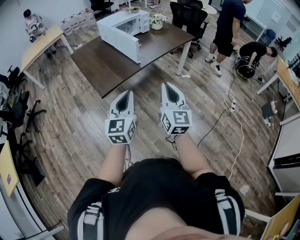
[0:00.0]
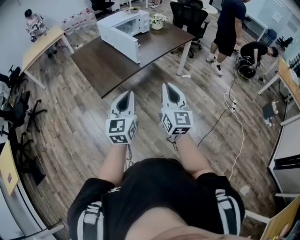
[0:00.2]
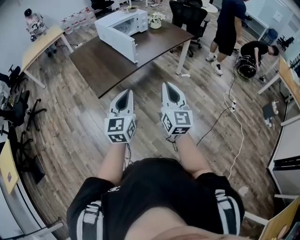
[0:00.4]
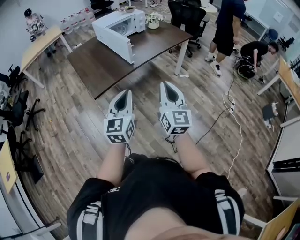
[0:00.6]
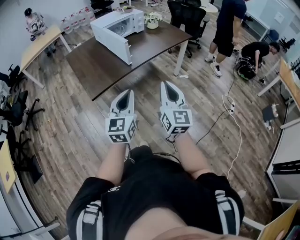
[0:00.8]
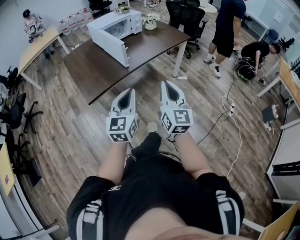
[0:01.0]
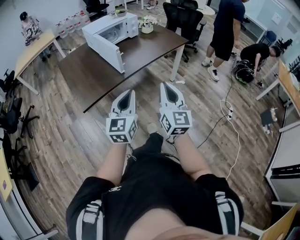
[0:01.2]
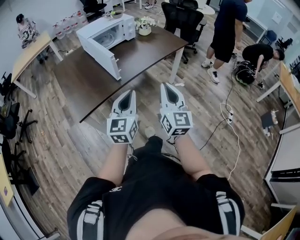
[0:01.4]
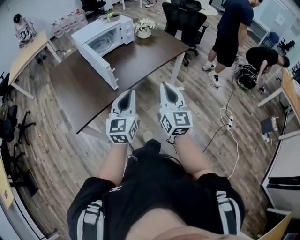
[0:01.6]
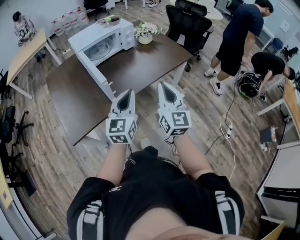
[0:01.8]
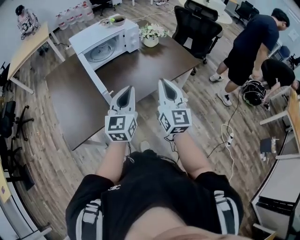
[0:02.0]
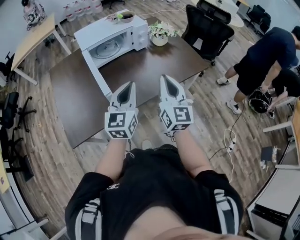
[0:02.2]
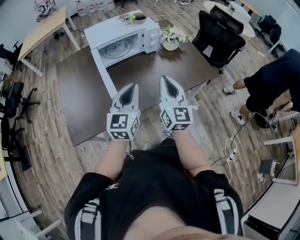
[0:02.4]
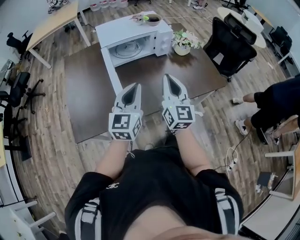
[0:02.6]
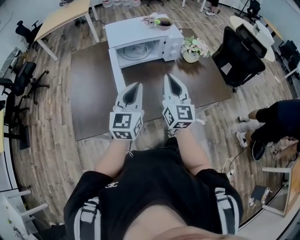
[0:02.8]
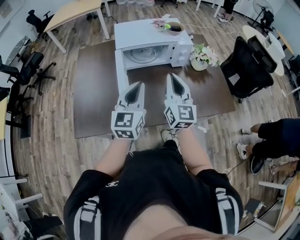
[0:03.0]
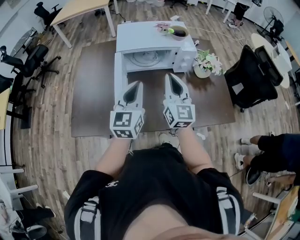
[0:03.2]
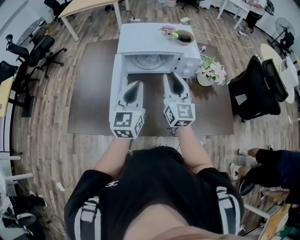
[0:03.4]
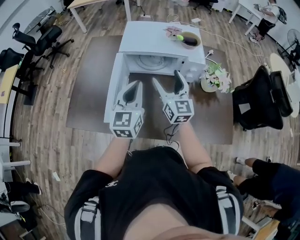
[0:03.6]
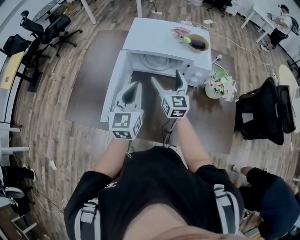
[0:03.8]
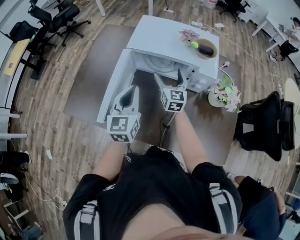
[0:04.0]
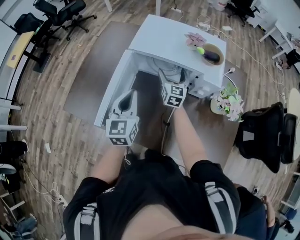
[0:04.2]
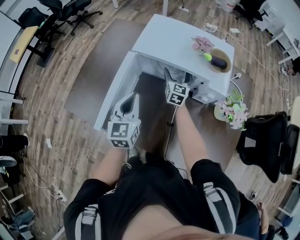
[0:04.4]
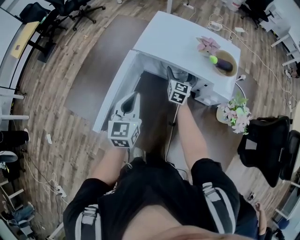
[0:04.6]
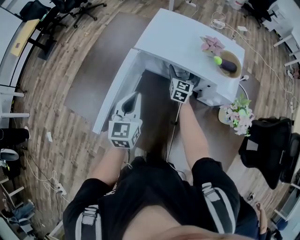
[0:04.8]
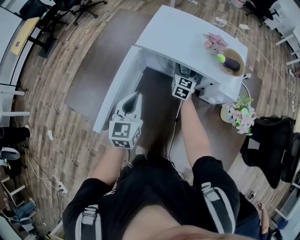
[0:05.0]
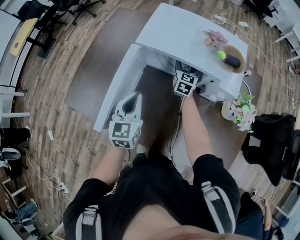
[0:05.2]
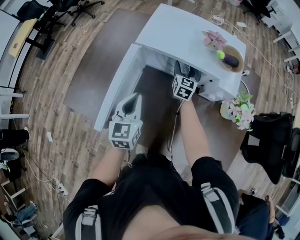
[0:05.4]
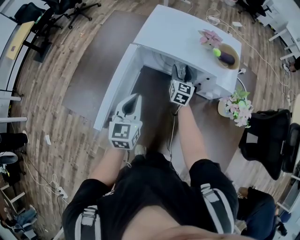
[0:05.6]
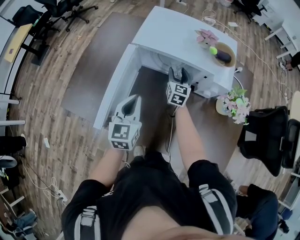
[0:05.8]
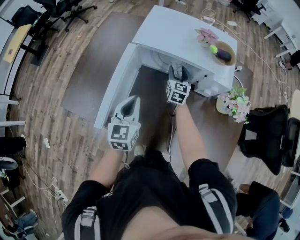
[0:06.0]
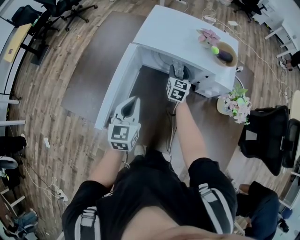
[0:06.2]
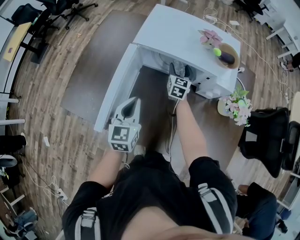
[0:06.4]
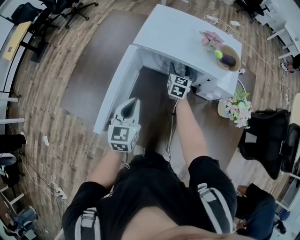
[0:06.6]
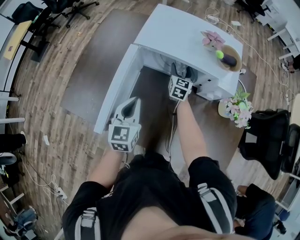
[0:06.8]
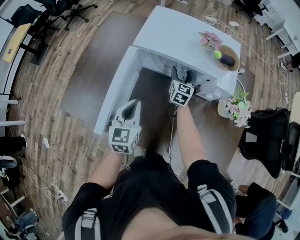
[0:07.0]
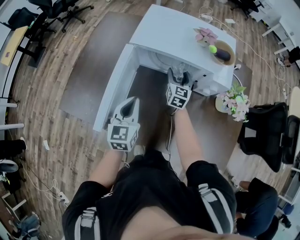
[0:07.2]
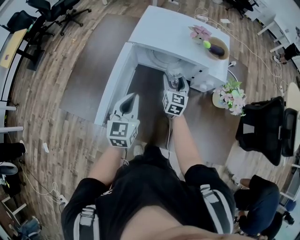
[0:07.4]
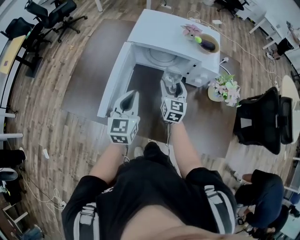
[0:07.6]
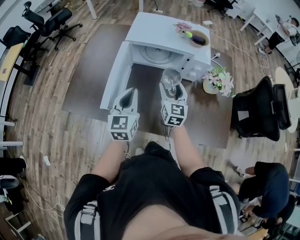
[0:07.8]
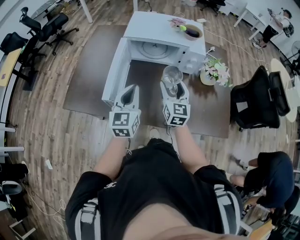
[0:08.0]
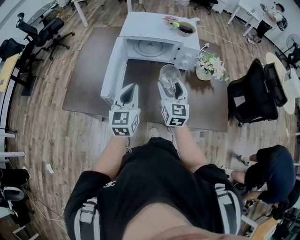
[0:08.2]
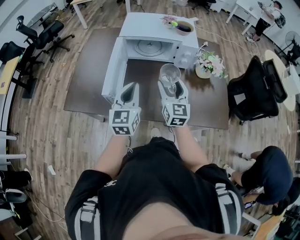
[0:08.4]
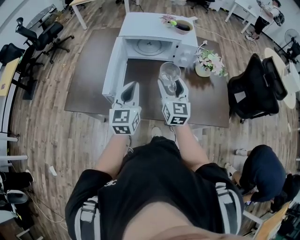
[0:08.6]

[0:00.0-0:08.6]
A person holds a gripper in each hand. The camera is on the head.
0:00.0 to 0:01.4: Both grippers move forward and to the right, some 25 cm.
0:01.4 to 0:02.8: The pair of grippers is taken forward, approximately 50 cm. The left gripper swivels some 20 degrees. Meanwhile the right gripper changes its angle by roughly 20 degrees.
0:02.8 to 0:04.4: The left gripper moves about 20 cm, and changes its angle by roughly 40 degrees, while the right gripper shifts by some 50 cm, swivels approximately 30 degrees, and opens its fingers.
0:04.4 to 0:05.8: The right gripper closes its fingers.
0:05.8 to 0:07.2: The grippers move only a little.
0:07.2 to 0:08.6: The right gripper moves backward and upward, about 35 cm. The left gripper is displaced backward and upward by about 20 cm.

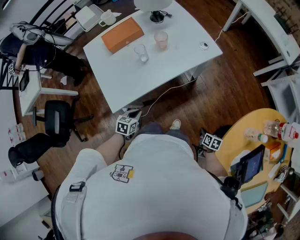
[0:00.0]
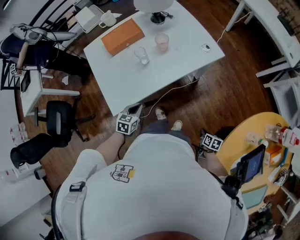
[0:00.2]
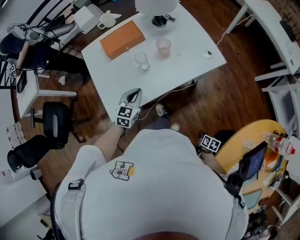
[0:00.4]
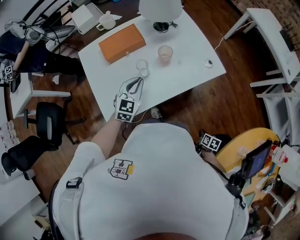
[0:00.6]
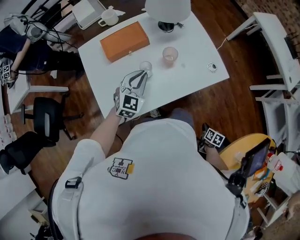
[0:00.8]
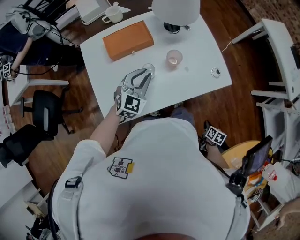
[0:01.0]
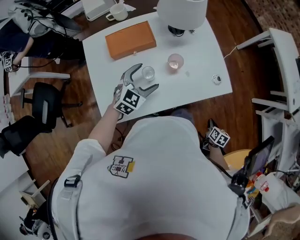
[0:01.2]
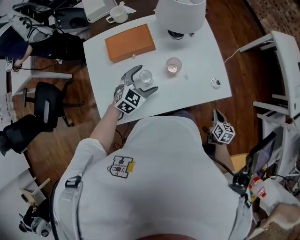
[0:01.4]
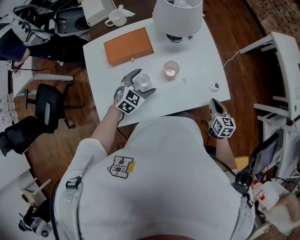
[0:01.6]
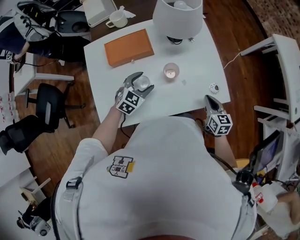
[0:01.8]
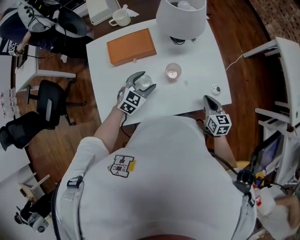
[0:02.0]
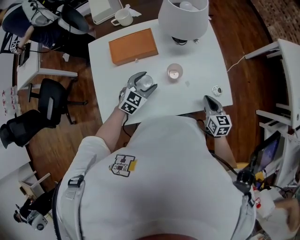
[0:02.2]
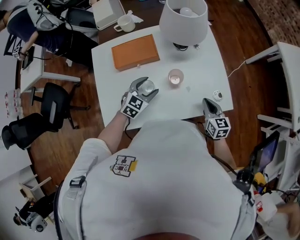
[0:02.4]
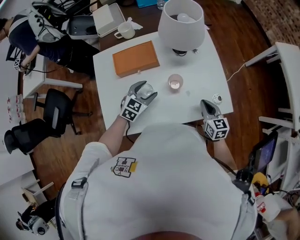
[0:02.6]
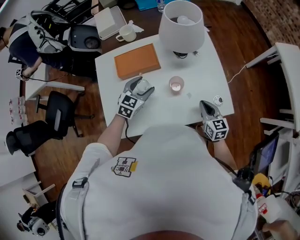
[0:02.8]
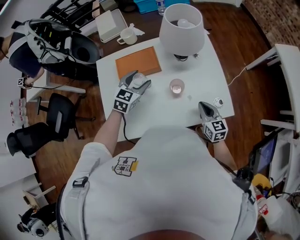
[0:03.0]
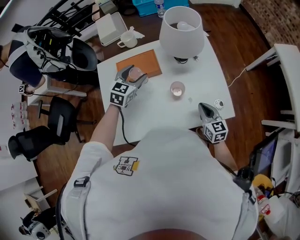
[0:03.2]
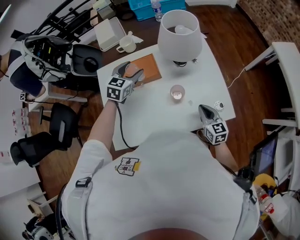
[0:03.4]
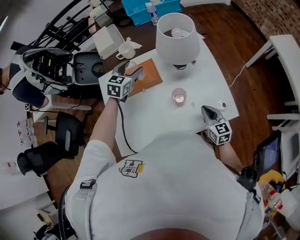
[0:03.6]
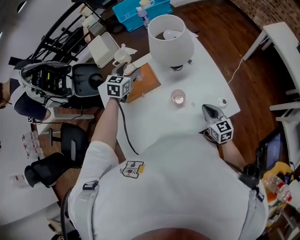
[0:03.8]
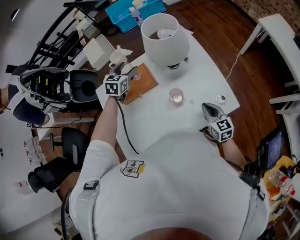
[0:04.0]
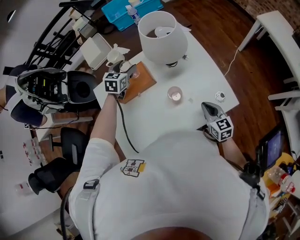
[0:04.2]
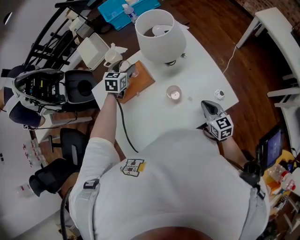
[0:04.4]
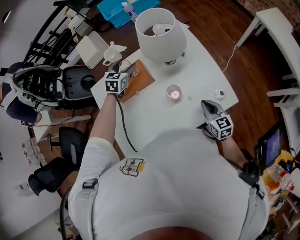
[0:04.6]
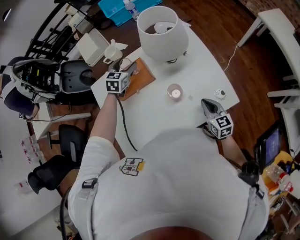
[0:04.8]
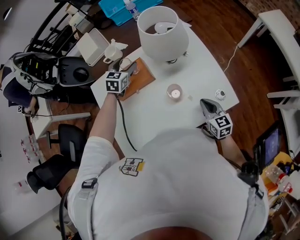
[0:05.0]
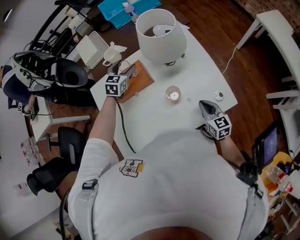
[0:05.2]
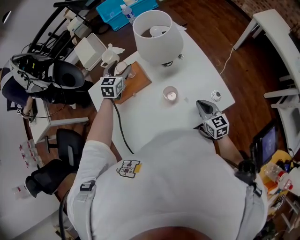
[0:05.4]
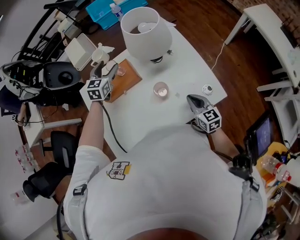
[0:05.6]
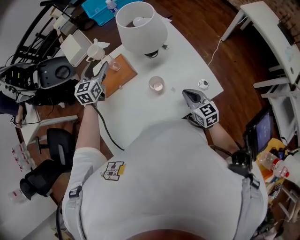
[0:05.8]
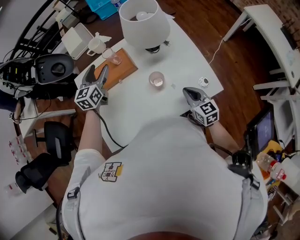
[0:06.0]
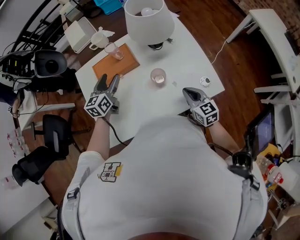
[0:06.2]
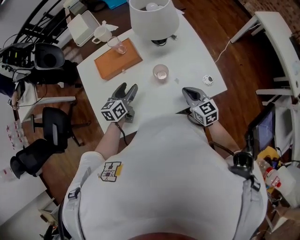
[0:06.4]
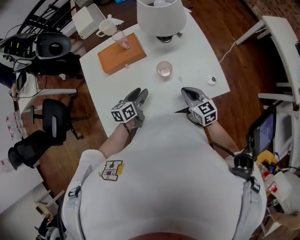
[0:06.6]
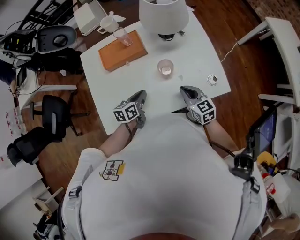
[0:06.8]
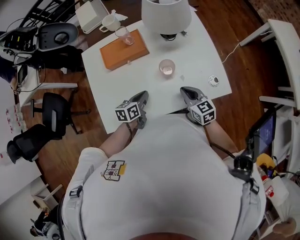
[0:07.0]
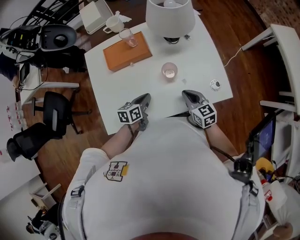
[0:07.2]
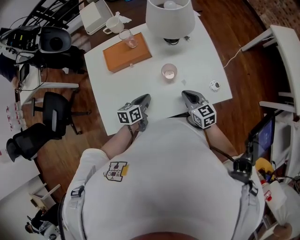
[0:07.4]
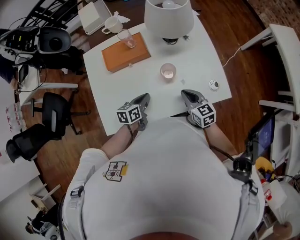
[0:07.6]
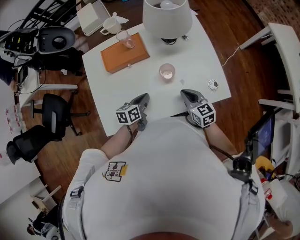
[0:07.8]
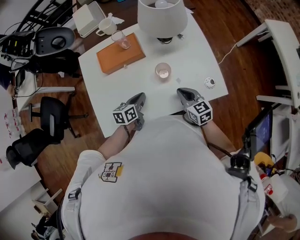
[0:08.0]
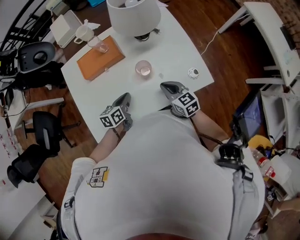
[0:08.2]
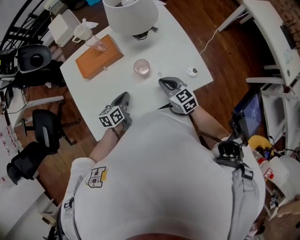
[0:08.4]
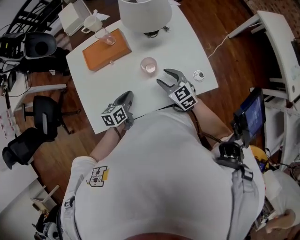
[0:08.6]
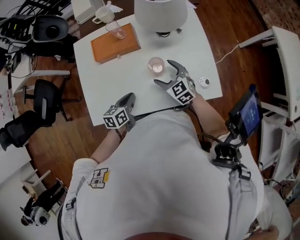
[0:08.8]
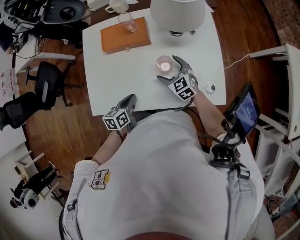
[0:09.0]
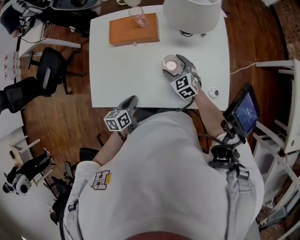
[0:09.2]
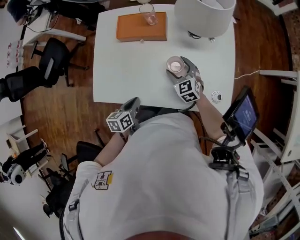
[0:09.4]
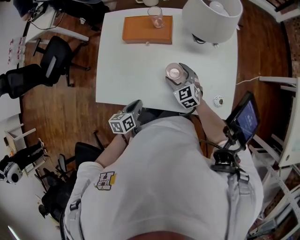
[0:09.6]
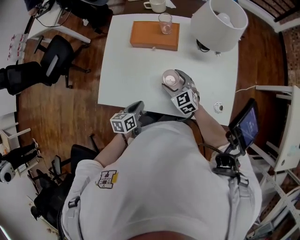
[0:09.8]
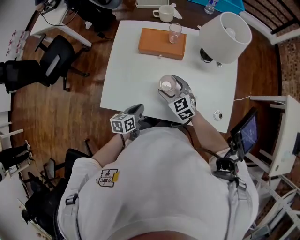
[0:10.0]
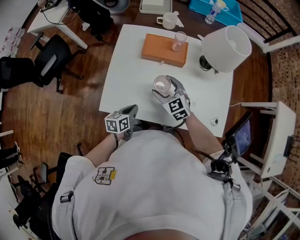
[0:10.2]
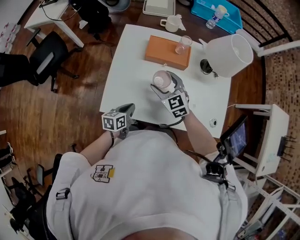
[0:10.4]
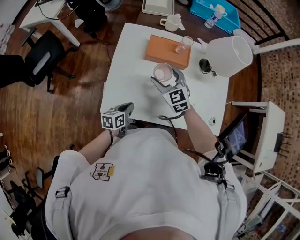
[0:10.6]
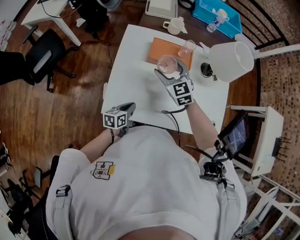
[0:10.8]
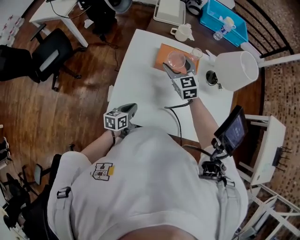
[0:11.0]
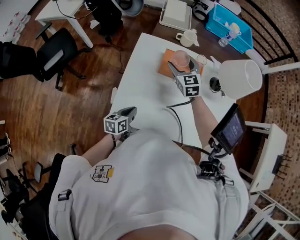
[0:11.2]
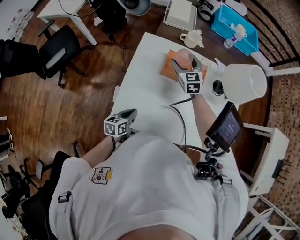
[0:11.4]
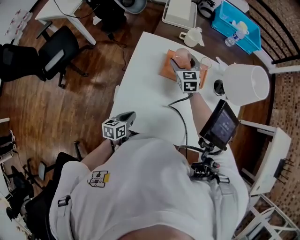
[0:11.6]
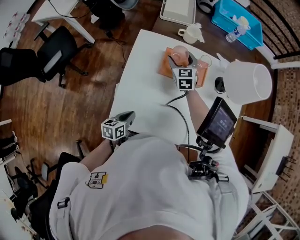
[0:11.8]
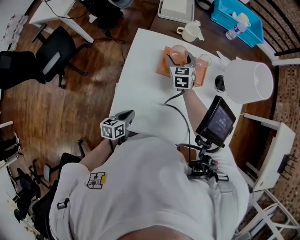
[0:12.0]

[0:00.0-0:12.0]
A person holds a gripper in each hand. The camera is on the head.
0:00.0 to 0:01.6: Both grippers move forward, roughly 40 cm. The right gripper rotates approximately 40 degrees; the left gripper swivels roughly 30 degrees, and opens its fingers.
0:01.6 to 0:03.0: The left gripper moves forward, upward and to the left, some 10 cm. The right gripper shifts about 10 cm to the left.
0:03.0 to 0:04.4: The left gripper is displaced forward by roughly 15 cm.
0:04.4 to 0:06.0: The left gripper goes some 10 cm backward and upward, and rotates approximately 30 degrees.
0:06.0 to 0:07.6: The right gripper moves to the left, approximately 5 cm; the left gripper travels backward, downward and to the right by some 30 cm, changes its angle by about 40 degrees, and closes up.
0:07.6 to 0:09.0: The right gripper heads forward and to the left, covering approximately 10 cm, swivels about 30 degrees, and opens its fingers. The left gripper shifts some 5 cm backward.
0:09.0 to 0:10.4: The right gripper goes roughly 25 cm to the left and upward. Meanwhile the left gripper is displaced to the left by approximately 15 cm.
0:10.4 to 0:12.0: The right gripper moves forward, roughly 25 cm, and swivels about 20 degrees; the left gripper travels to the left by roughly 5 cm.

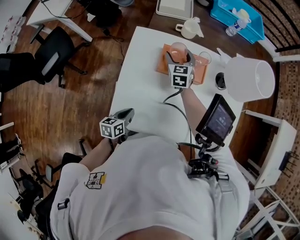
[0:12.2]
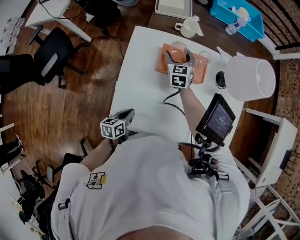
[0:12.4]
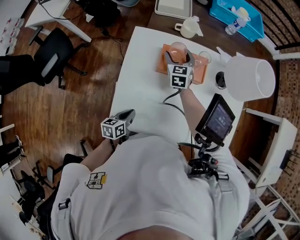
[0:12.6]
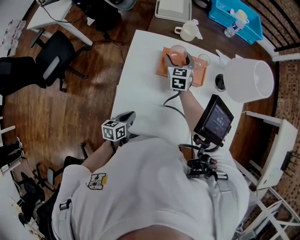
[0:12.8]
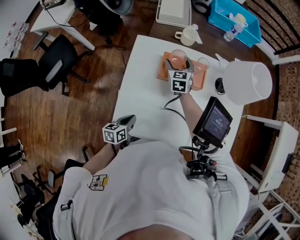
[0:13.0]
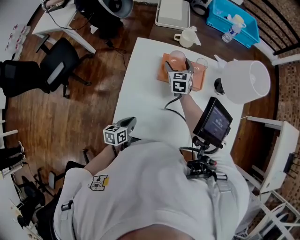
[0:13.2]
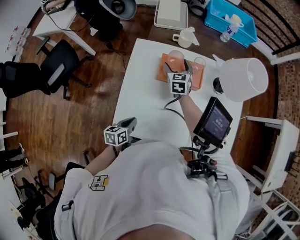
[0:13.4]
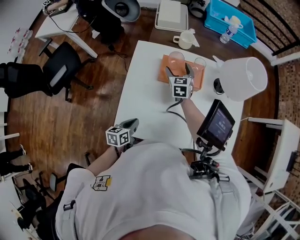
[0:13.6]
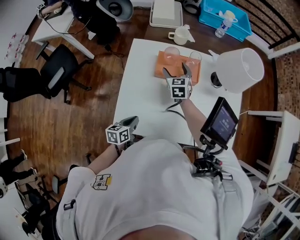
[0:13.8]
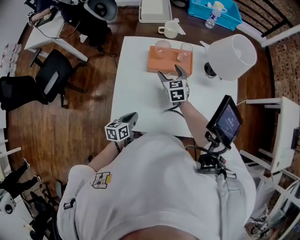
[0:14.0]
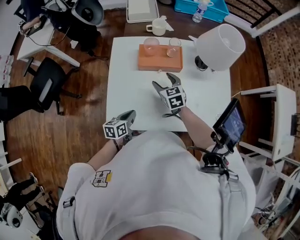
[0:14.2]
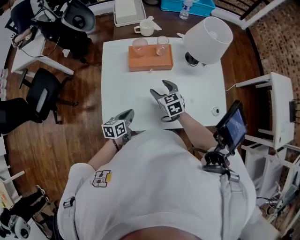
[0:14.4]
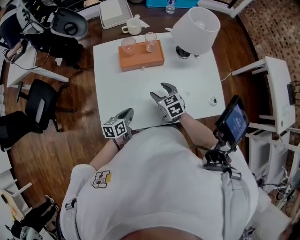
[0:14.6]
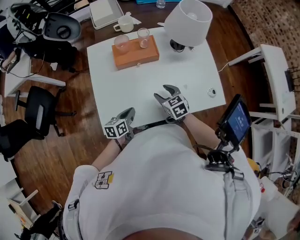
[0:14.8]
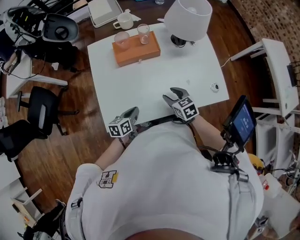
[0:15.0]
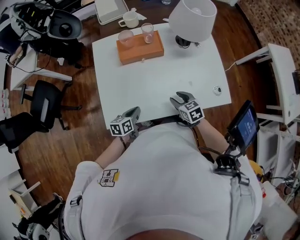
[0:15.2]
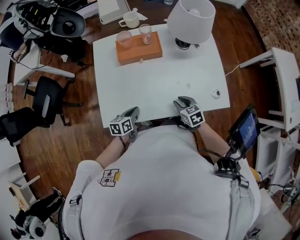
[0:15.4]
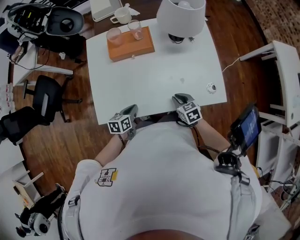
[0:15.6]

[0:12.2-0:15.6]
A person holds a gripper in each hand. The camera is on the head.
0:12.2 to 0:13.8: The right gripper goes some 5 cm backward.
0:13.8 to 0:15.6: The right gripper goes about 40 cm backward and to the right, turns by some 30 degrees, and closes up. The left gripper travels to the right by roughly 15 cm.
